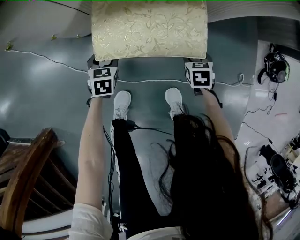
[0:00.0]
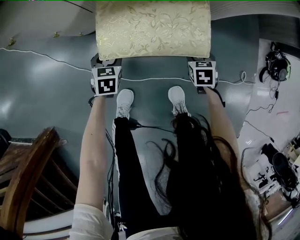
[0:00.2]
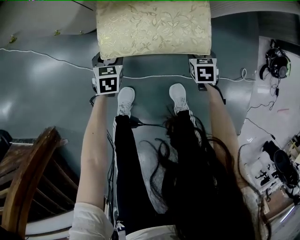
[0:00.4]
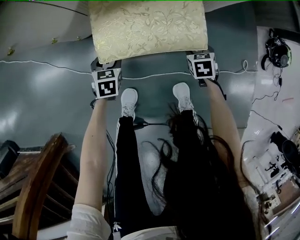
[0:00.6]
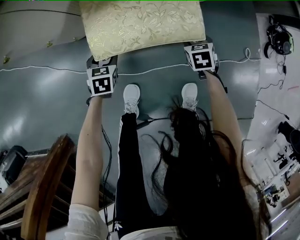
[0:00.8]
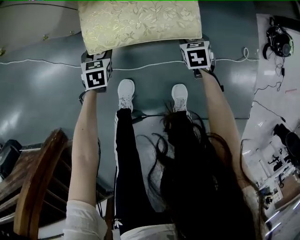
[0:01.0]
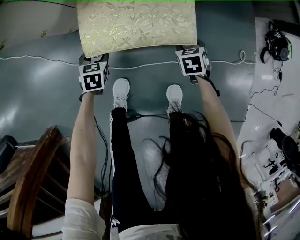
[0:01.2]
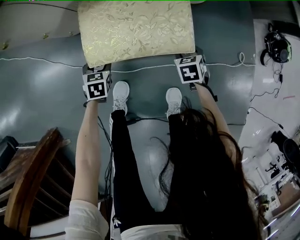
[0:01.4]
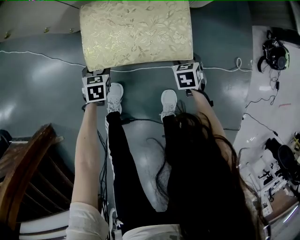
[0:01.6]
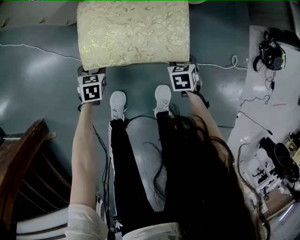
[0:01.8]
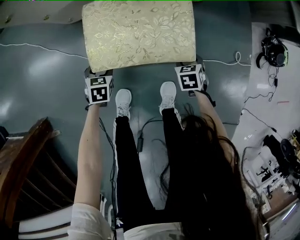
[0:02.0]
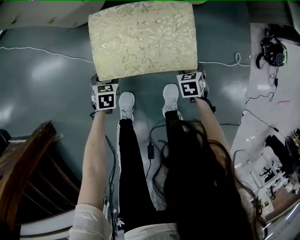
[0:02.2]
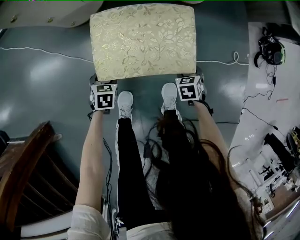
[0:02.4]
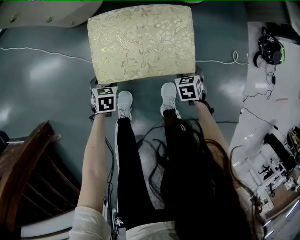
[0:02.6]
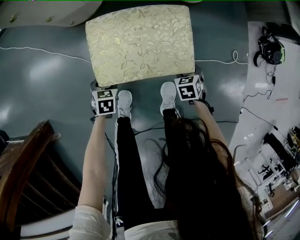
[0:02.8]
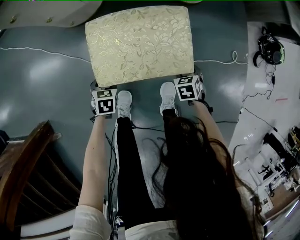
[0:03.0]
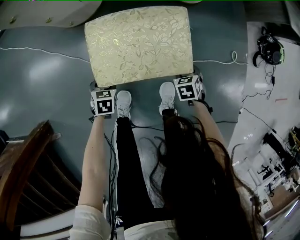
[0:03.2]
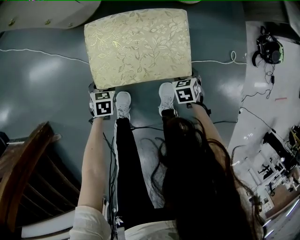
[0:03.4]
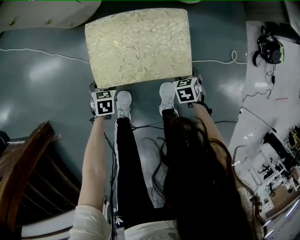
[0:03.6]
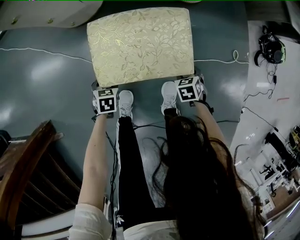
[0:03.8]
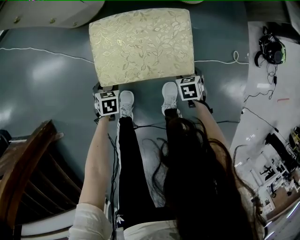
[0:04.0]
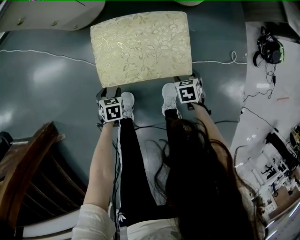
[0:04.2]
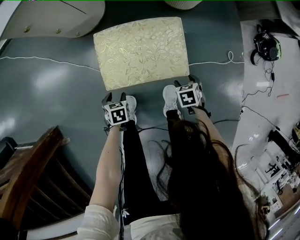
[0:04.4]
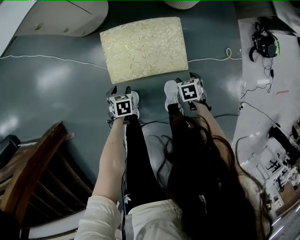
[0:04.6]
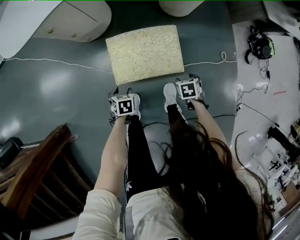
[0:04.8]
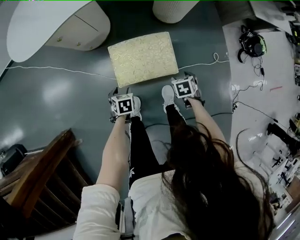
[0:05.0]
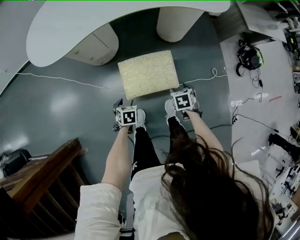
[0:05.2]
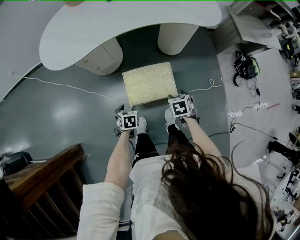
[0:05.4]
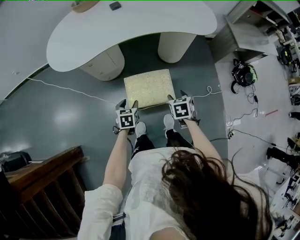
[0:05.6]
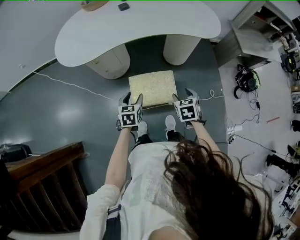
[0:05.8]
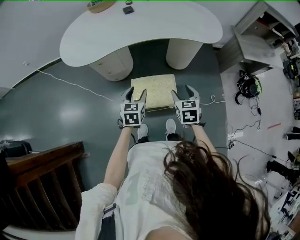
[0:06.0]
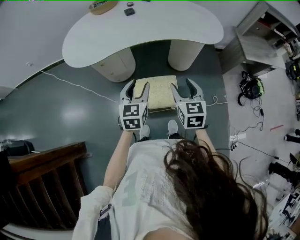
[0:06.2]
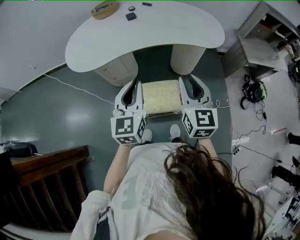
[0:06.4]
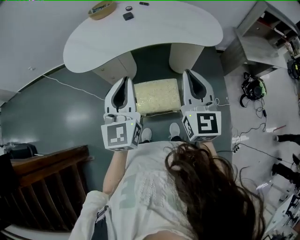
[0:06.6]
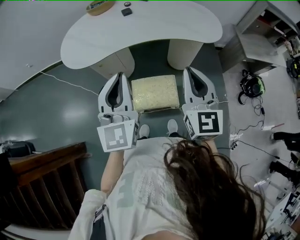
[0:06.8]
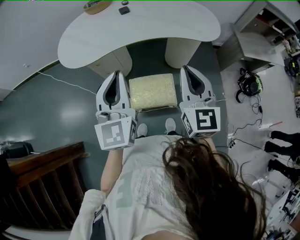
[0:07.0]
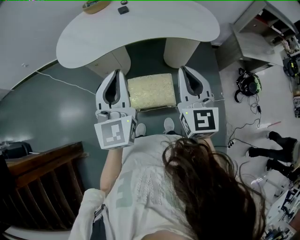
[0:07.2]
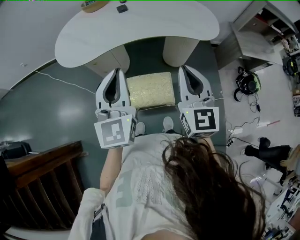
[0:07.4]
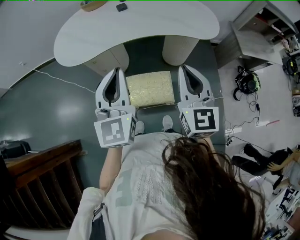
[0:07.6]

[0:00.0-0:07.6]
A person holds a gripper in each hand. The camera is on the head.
0:00.0 to 0:01.6: Both grippers move backward, about 20 cm.
0:01.6 to 0:03.0: There are only small adjustments of the grippers.
0:03.0 to 0:04.6: The grippers both shift upward by roughly 10 cm.
0:04.6 to 0:06.0: The grippers both shift upward by about 50 cm. The right gripper tilts its fingers about 40 degrees upward. The left gripper tilts its fingers roughly 40 degrees upward.
0:06.0 to 0:07.6: Both grippers move upward, roughly 25 cm. The right gripper tips its fingers upward by some 40 degrees, and closes up. The left gripper points its fingers approximately 40 degrees further upward, and closes its fingers.

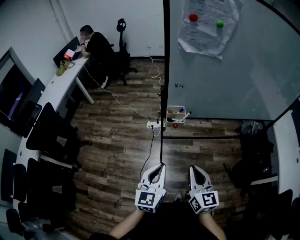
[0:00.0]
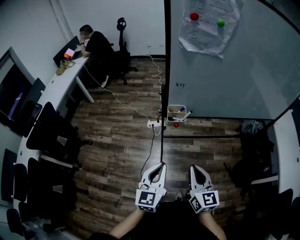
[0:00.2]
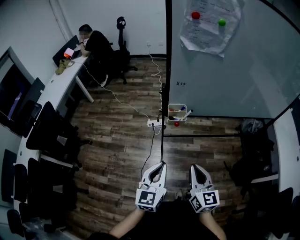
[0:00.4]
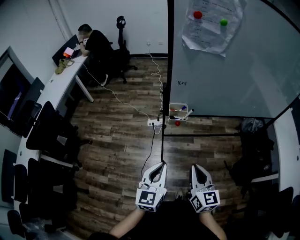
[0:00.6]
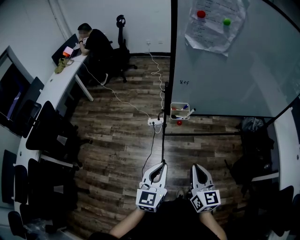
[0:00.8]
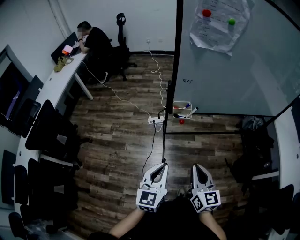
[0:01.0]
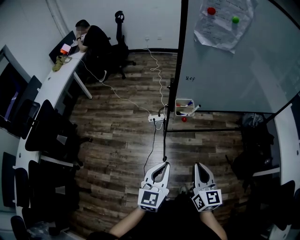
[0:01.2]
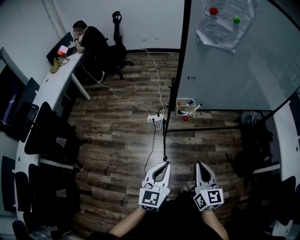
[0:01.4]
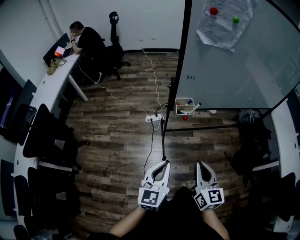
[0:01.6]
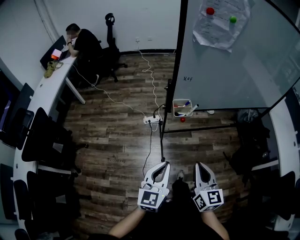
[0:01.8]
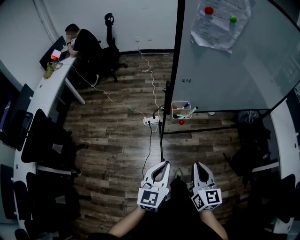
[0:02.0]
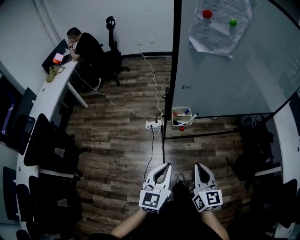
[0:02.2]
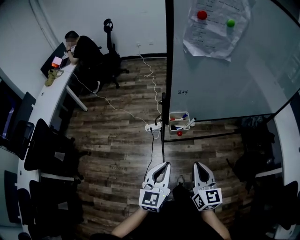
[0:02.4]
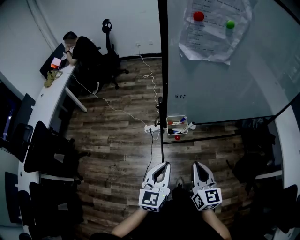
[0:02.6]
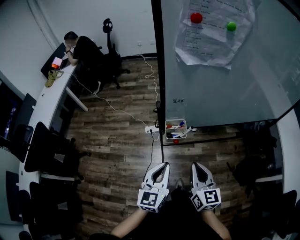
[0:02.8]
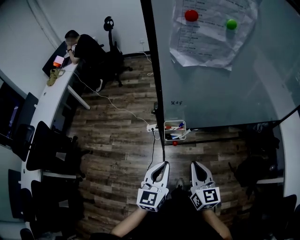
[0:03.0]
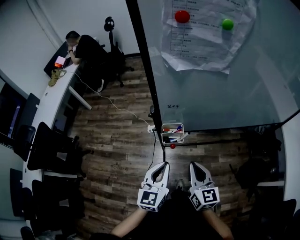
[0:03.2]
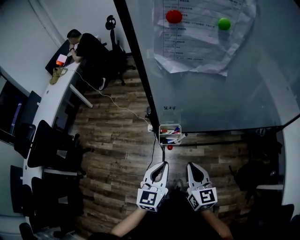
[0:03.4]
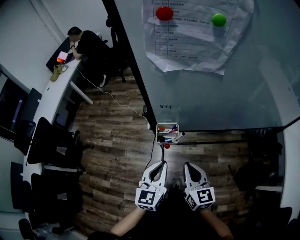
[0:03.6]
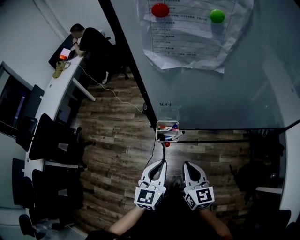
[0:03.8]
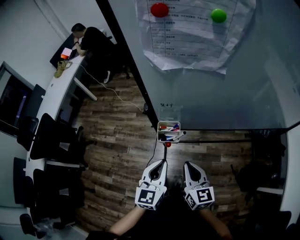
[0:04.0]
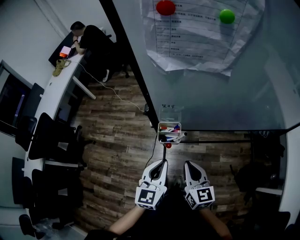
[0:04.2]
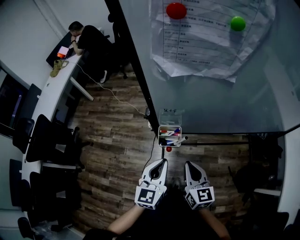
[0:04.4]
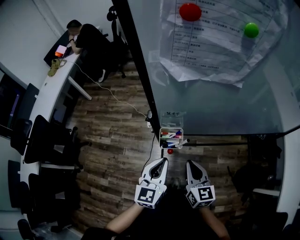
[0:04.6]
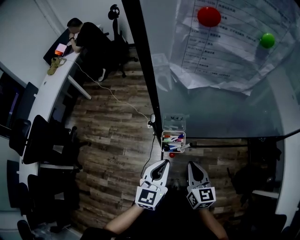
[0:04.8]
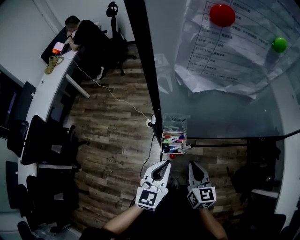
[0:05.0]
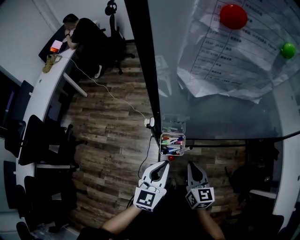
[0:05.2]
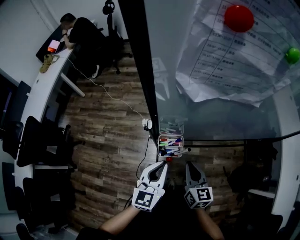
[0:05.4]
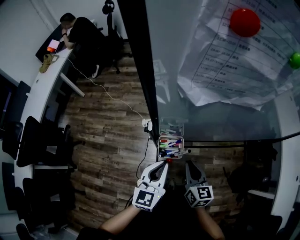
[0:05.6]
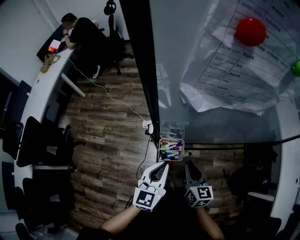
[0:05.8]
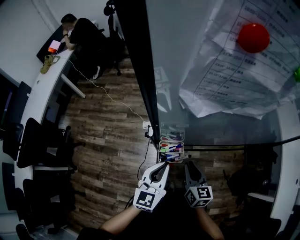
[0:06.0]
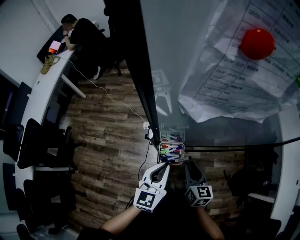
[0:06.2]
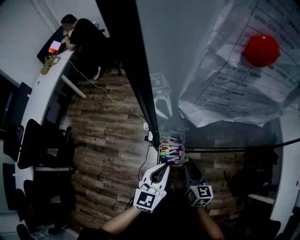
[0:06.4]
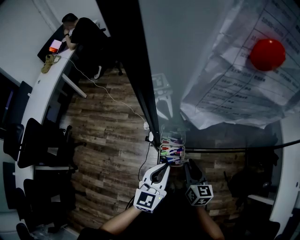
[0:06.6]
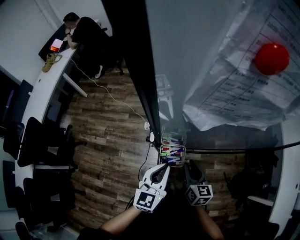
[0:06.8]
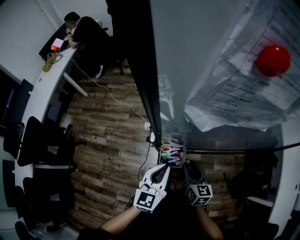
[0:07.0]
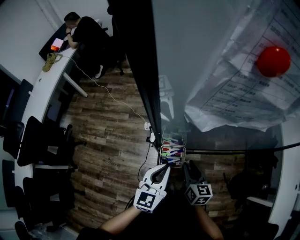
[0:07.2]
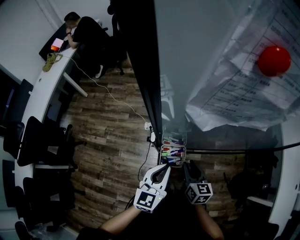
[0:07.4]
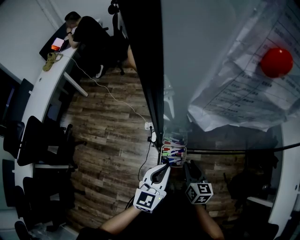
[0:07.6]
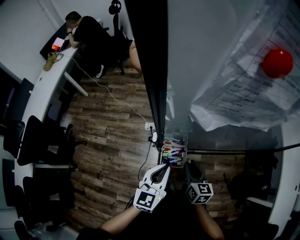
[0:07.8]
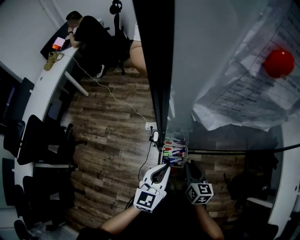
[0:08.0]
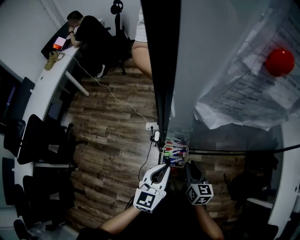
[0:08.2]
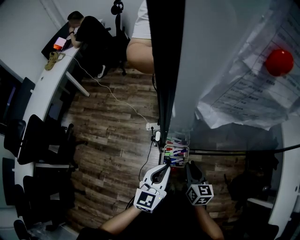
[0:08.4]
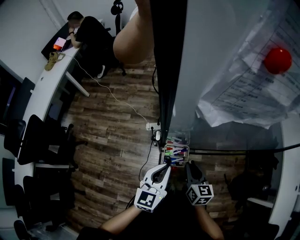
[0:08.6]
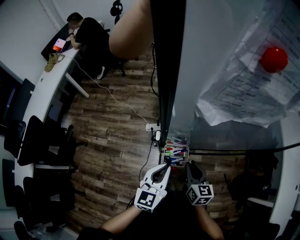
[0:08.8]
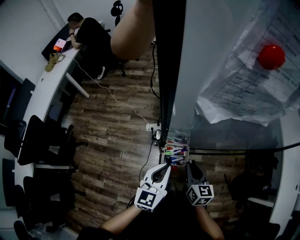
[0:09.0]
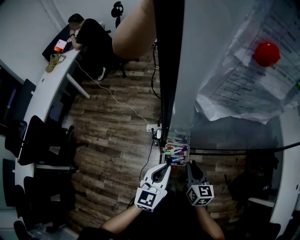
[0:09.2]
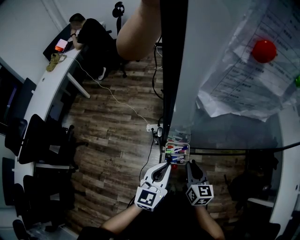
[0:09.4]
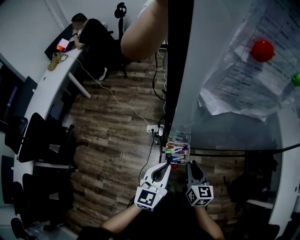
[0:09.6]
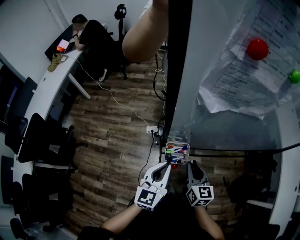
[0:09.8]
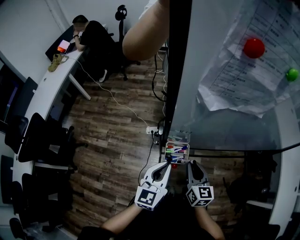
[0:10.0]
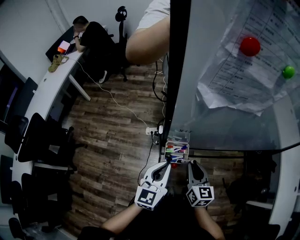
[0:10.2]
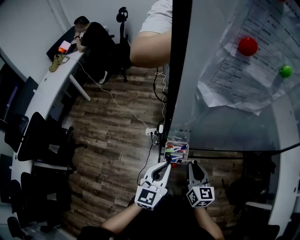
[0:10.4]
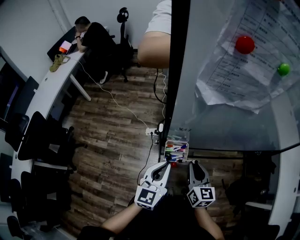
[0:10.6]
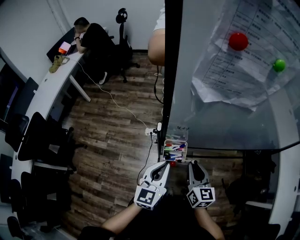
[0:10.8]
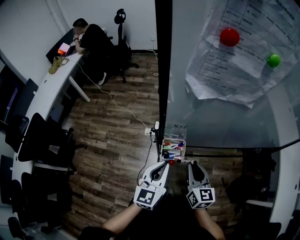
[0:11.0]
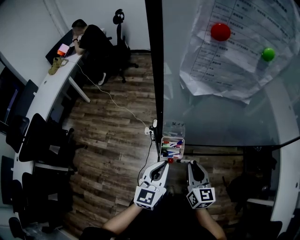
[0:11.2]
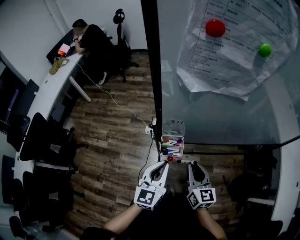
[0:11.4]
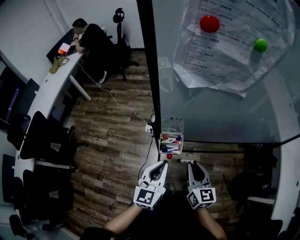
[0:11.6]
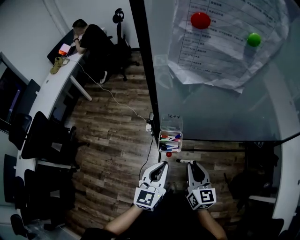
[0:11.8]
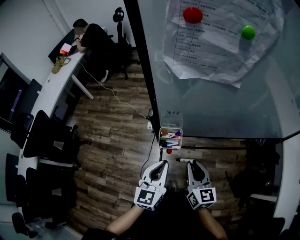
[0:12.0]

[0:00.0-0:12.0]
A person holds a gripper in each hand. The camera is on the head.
0:00.0 to 0:01.6: The two grippers go about 5 cm to the left.
0:01.6 to 0:03.0: The right gripper shifts roughly 15 cm forward. The left gripper moves forward and to the right, about 20 cm.
0:03.0 to 0:04.4: The grippers both shift forward by about 5 cm.
0:04.4 to 0:06.0: The right gripper is displaced forward and downward by some 10 cm, while the left gripper heads forward, covering approximately 10 cm.
0:06.0 to 0:10.4: There are only small adjustments of the grippers.
0:10.4 to 0:12.0: The grippers both shift backward by about 5 cm.

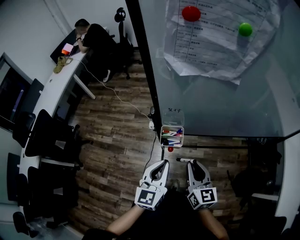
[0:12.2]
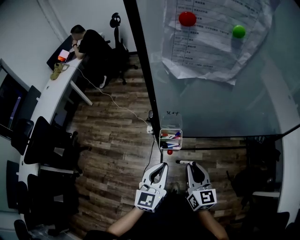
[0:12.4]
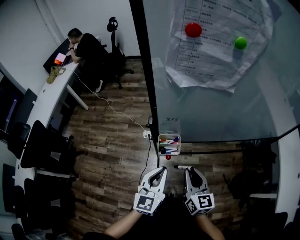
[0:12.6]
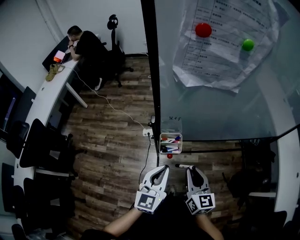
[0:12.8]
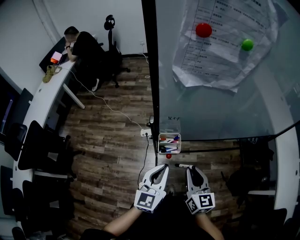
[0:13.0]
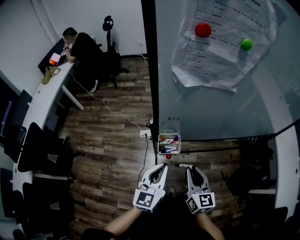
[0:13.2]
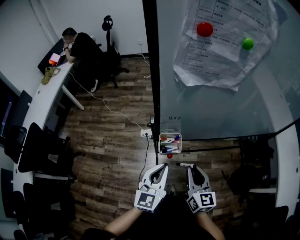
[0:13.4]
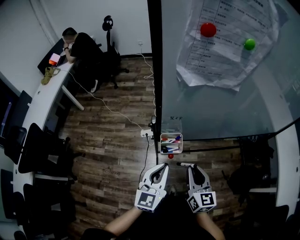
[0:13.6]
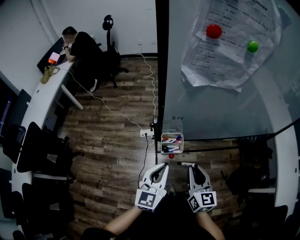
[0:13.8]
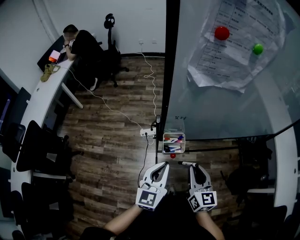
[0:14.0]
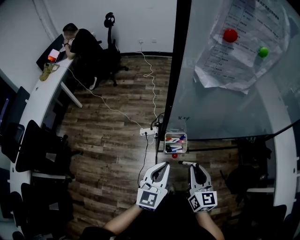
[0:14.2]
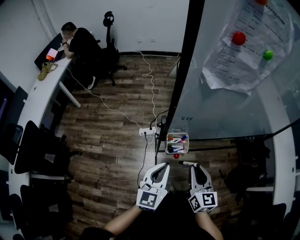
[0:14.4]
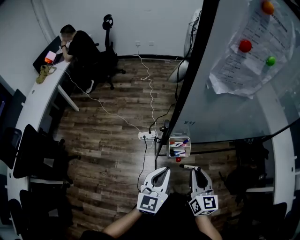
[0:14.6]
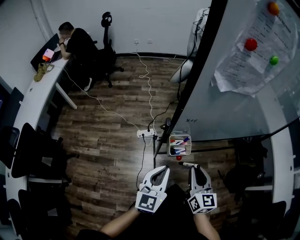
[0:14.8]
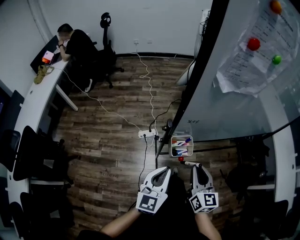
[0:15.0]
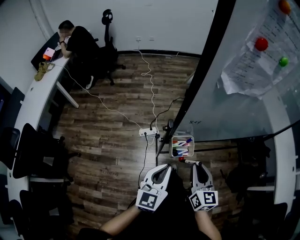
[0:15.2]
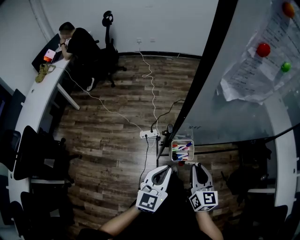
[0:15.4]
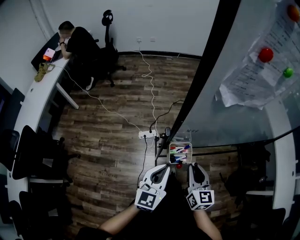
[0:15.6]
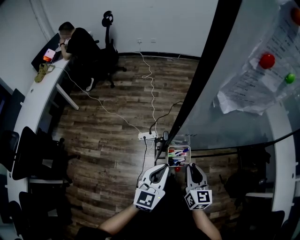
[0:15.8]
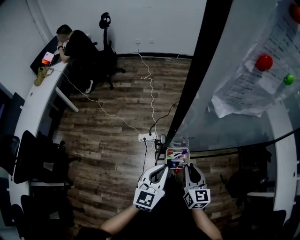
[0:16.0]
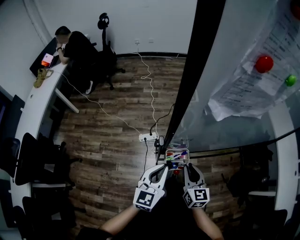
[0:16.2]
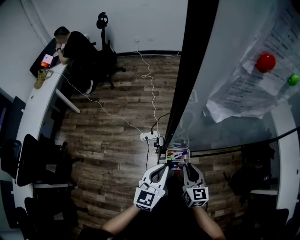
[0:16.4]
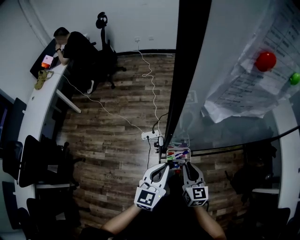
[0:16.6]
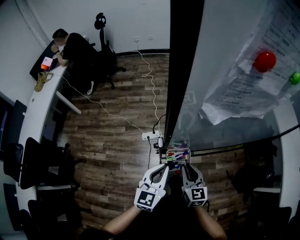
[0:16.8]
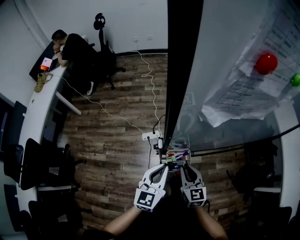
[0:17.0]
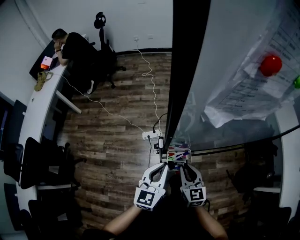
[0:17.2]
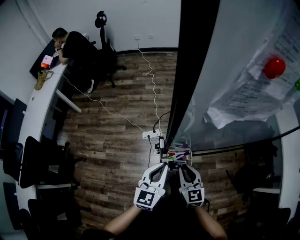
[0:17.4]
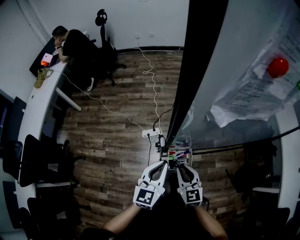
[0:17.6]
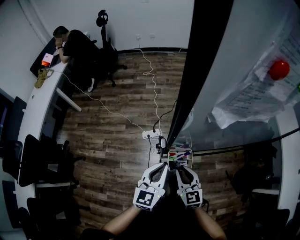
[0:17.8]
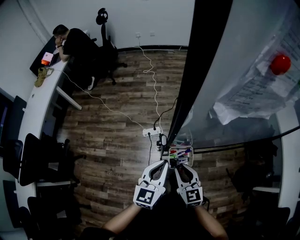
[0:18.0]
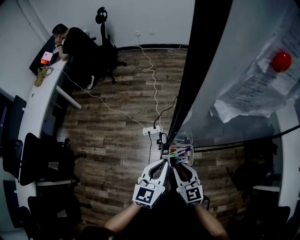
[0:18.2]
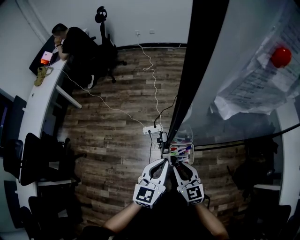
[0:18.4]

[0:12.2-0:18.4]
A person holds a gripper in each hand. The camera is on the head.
0:12.2 to 0:13.8: There are only small adjustments of the grippers.
0:13.8 to 0:15.4: The right gripper shifts by some 5 cm, while the left gripper shifts about 5 cm to the left.
0:15.4 to 0:16.8: The right gripper shifts about 10 cm downward and forward. Meanwhile the left gripper heads forward, covering roughly 5 cm.
0:16.8 to 0:18.4: The right gripper moves to the left, about 5 cm.
